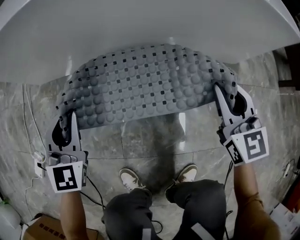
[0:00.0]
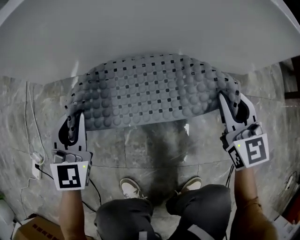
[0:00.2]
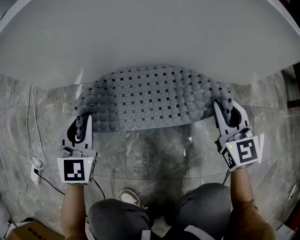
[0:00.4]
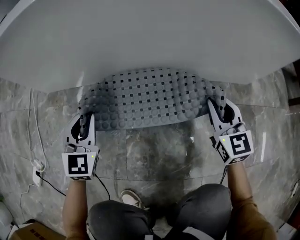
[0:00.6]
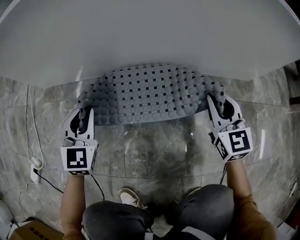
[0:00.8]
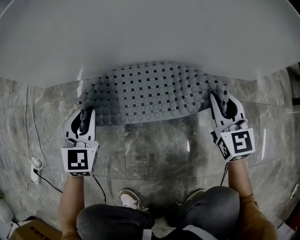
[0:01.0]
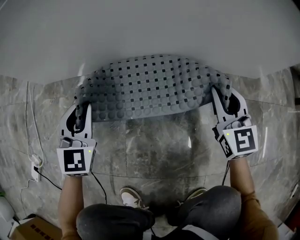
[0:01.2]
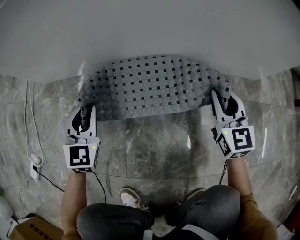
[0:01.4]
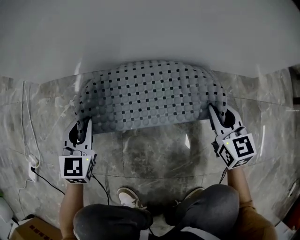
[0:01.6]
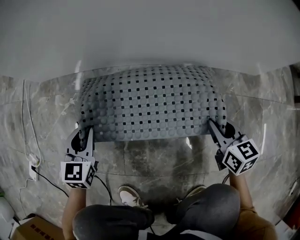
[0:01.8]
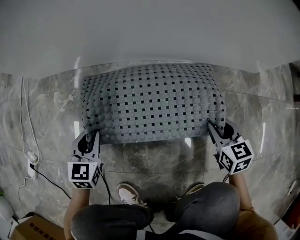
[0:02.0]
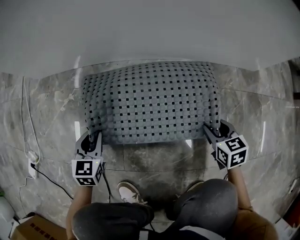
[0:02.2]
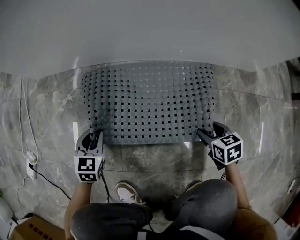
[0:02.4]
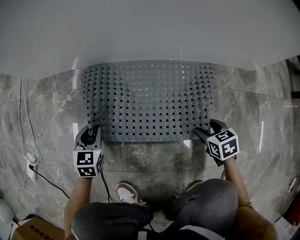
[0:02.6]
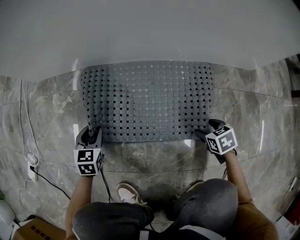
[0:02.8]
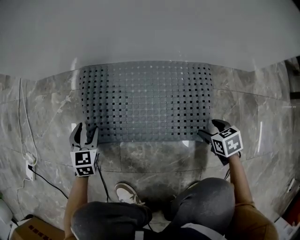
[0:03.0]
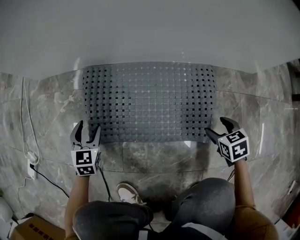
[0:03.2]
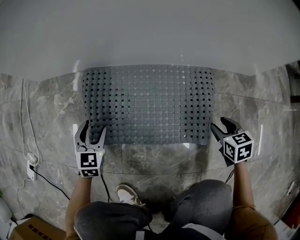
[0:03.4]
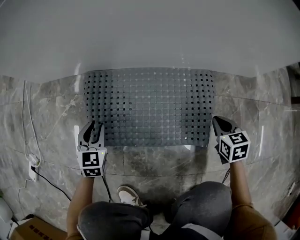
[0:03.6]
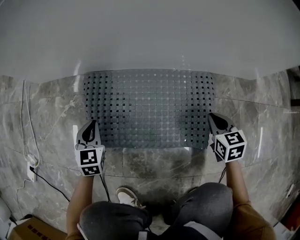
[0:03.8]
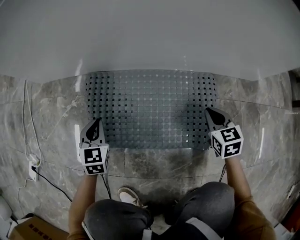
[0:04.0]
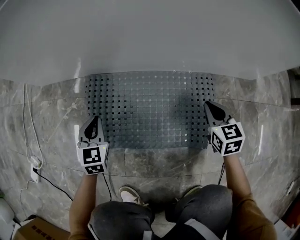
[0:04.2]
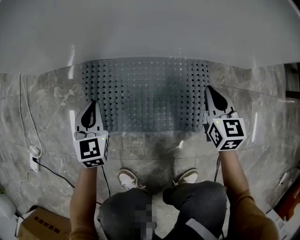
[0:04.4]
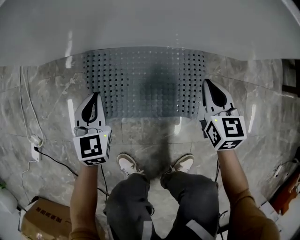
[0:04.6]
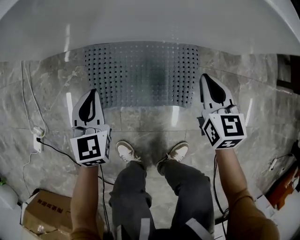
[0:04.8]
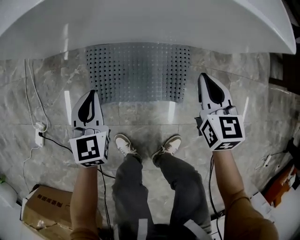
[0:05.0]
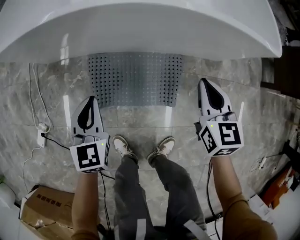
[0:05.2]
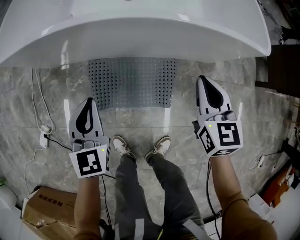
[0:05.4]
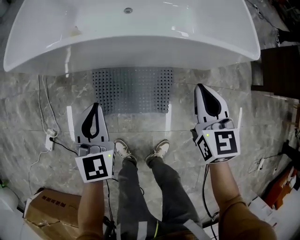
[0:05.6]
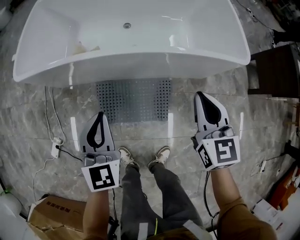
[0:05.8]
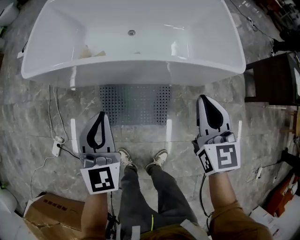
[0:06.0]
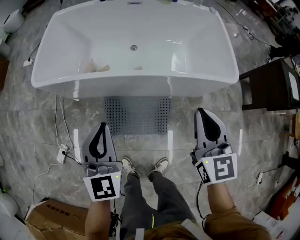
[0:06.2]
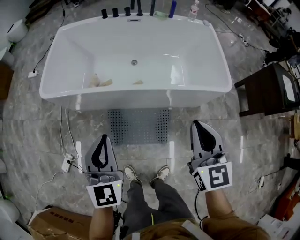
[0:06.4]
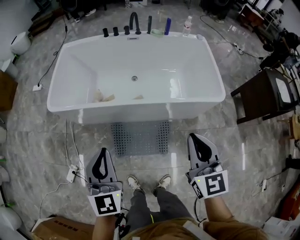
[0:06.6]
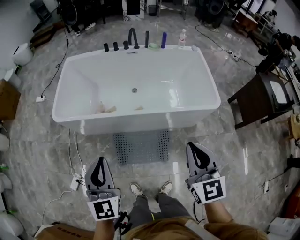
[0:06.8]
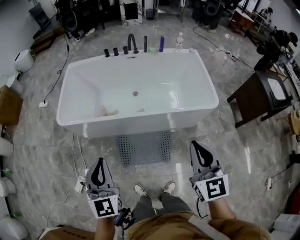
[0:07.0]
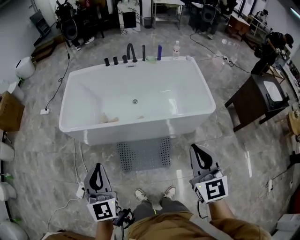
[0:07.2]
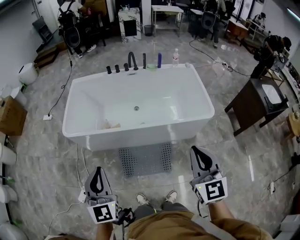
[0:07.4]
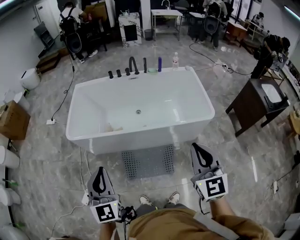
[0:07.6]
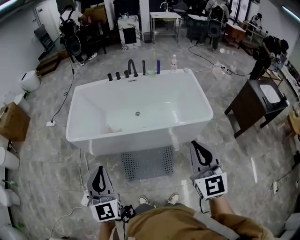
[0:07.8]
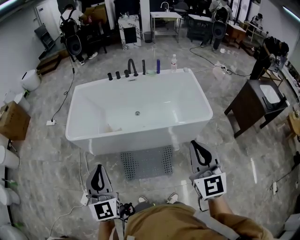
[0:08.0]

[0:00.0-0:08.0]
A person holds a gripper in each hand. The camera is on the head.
0:00.0 to 0:01.6: The right gripper moves roughly 5 cm; the left gripper moves about 5 cm.
0:01.6 to 0:03.2: The left gripper heads downward, covering approximately 10 cm, and opens up, while the right gripper heads downward and backward, covering about 15 cm, tilts its fingers some 40 degrees downward, and opens up.
0:03.2 to 0:04.8: The grippers both shift upward by roughly 25 cm. The right gripper tips its fingers upward by about 30 degrees, and closes up, while the left gripper closes.
0:04.8 to 0:06.4: Both grippers travel together upward, about 60 cm.
0:06.4 to 0:08.0: Both grippers move upward and backward, some 25 cm.

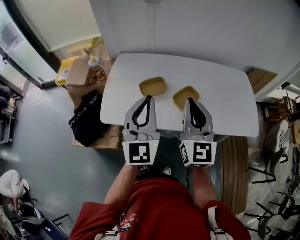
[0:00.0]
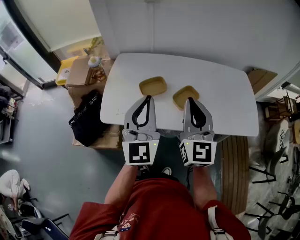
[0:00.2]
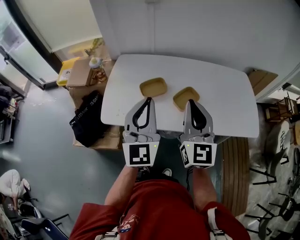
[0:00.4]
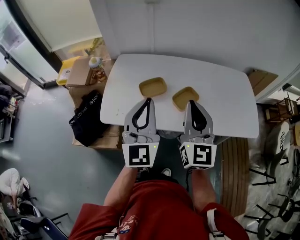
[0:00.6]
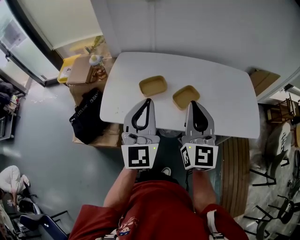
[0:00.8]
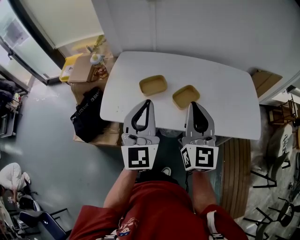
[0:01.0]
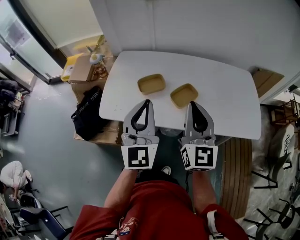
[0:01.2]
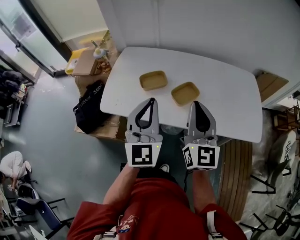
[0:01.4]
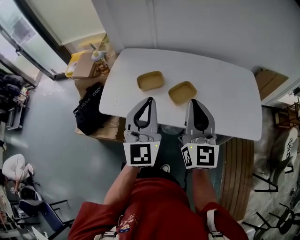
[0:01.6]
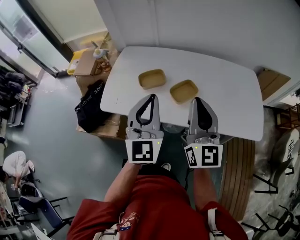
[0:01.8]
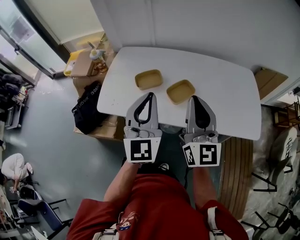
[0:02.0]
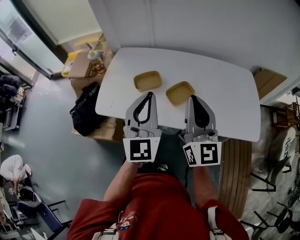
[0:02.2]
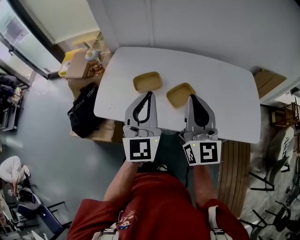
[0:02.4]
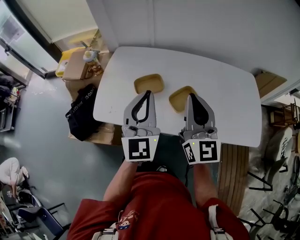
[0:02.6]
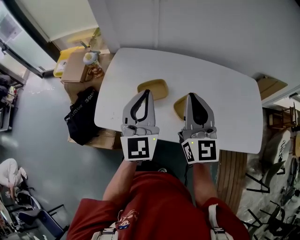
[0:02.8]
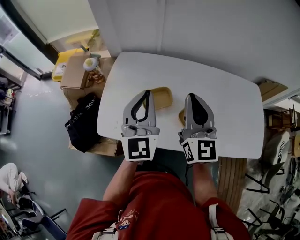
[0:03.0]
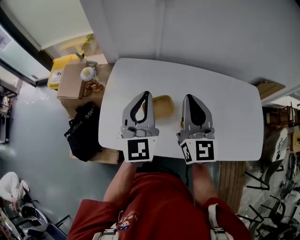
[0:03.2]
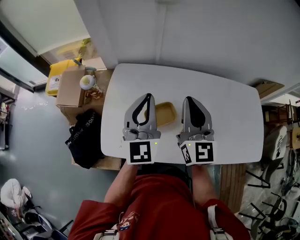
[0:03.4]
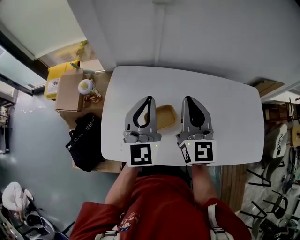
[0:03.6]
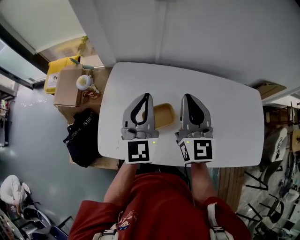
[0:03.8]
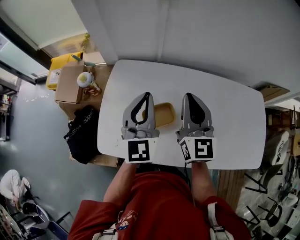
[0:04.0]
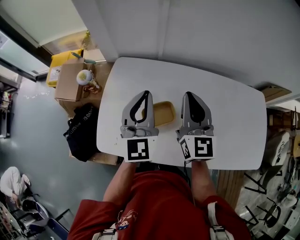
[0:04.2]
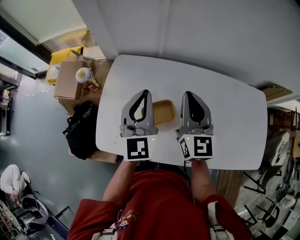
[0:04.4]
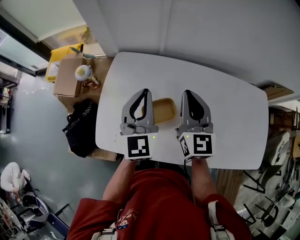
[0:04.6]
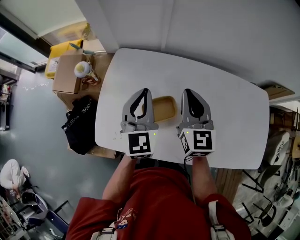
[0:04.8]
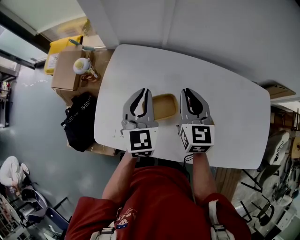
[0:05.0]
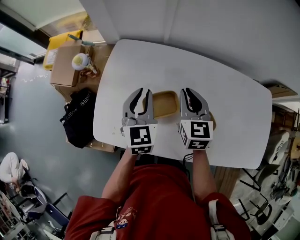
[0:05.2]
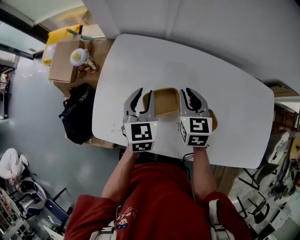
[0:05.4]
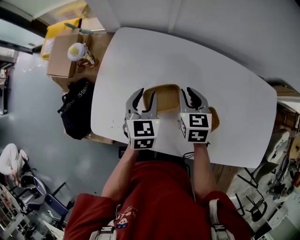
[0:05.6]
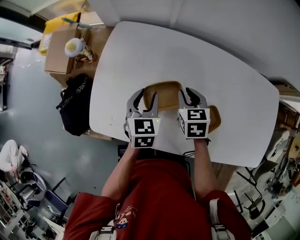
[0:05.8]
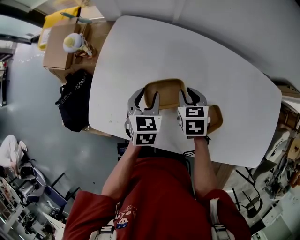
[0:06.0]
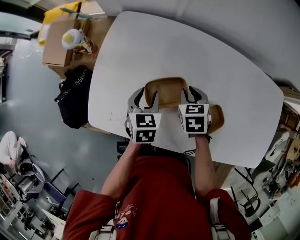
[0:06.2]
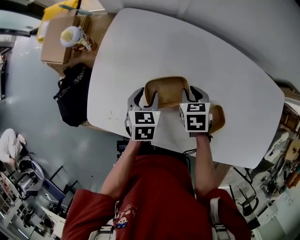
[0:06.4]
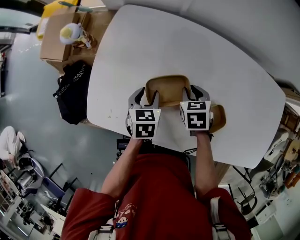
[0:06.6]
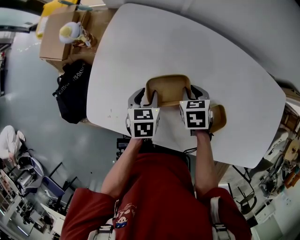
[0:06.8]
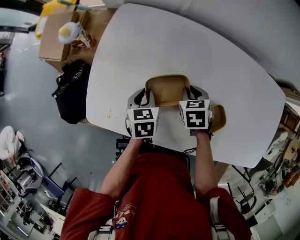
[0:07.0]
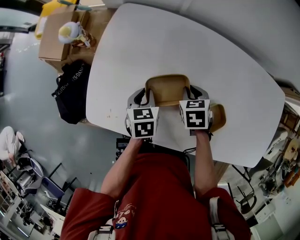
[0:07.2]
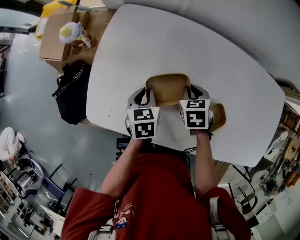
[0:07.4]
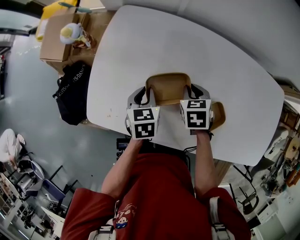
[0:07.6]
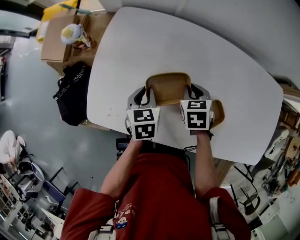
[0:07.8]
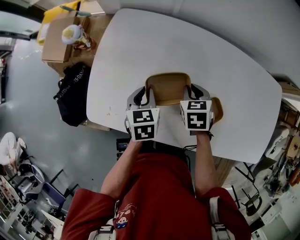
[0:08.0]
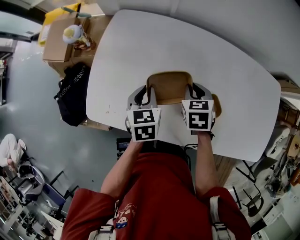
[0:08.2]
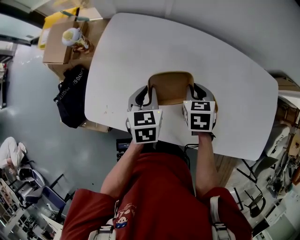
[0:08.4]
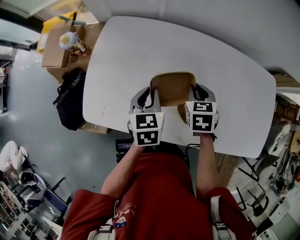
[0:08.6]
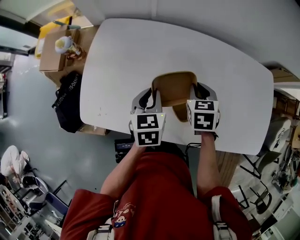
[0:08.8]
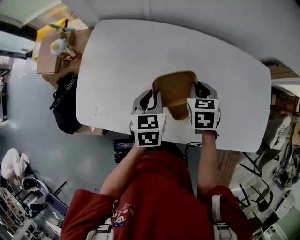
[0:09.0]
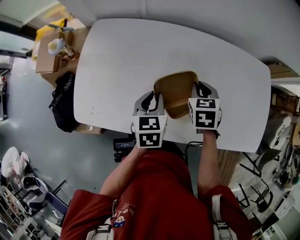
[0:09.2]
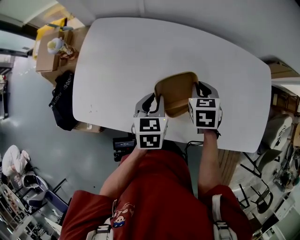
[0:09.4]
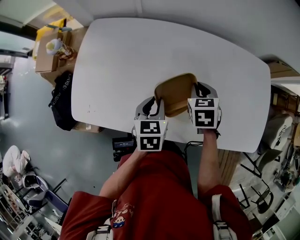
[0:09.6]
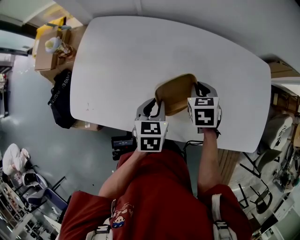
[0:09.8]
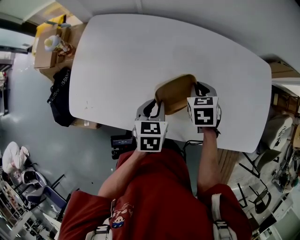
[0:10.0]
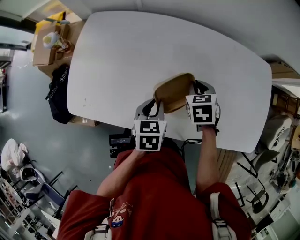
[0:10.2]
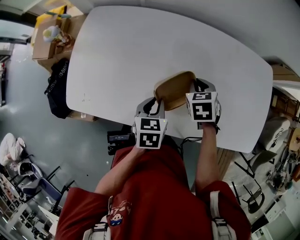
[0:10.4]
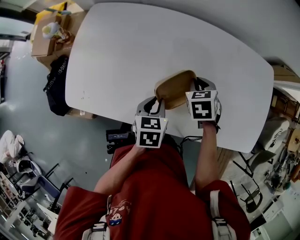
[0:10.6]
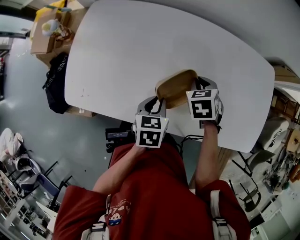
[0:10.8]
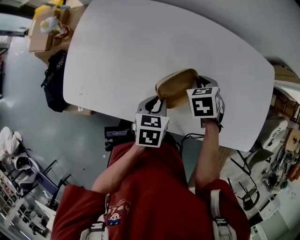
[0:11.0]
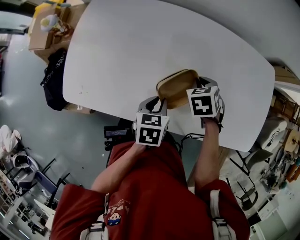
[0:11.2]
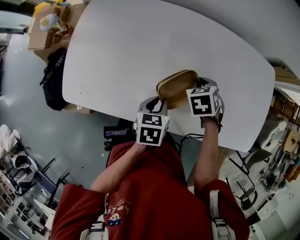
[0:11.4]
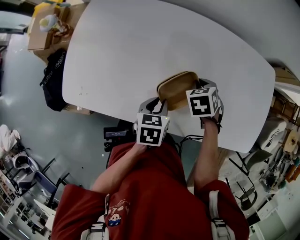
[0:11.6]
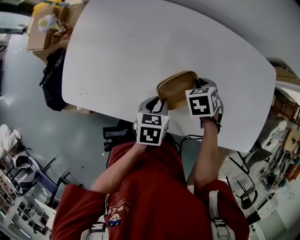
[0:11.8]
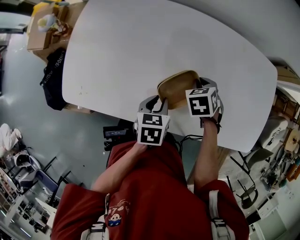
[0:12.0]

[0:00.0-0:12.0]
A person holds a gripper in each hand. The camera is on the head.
0:00.0 to 0:01.6: The grippers both shift to the right by some 10 cm.
0:01.6 to 0:03.0: Both grippers move forward and to the left, some 20 cm.
0:03.0 to 0:04.4: The two grippers go approximately 15 cm forward.
0:04.4 to 0:06.0: The two grippers go about 25 cm downward. The right gripper angles its fingers downward, by some 50 degrees, and opens its fingers. The left gripper angles its fingers downward, by some 40 degrees, and opens up.
0:06.0 to 0:07.6: The left gripper closes up.
0:07.6 to 0:09.0: Both grippers move to the right and upward, approximately 15 cm.
0:09.0 to 0:10.4: The left gripper travels to the right, backward and downward by some 10 cm. Meanwhile the right gripper is displaced to the right by some 5 cm.
0:10.4 to 0:12.0: The grippers move only a little.

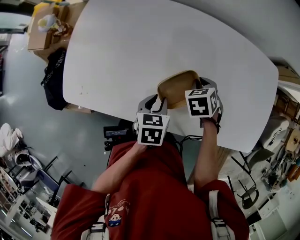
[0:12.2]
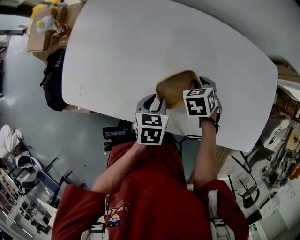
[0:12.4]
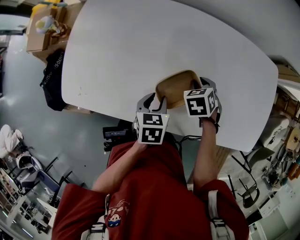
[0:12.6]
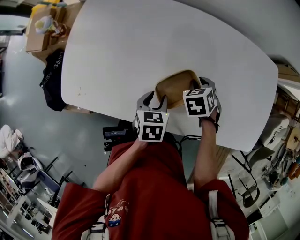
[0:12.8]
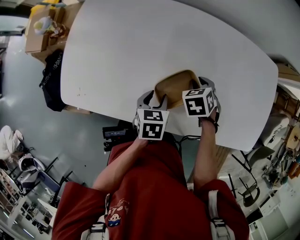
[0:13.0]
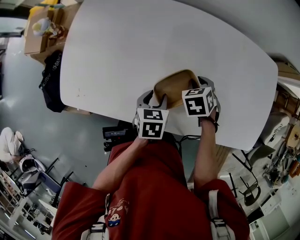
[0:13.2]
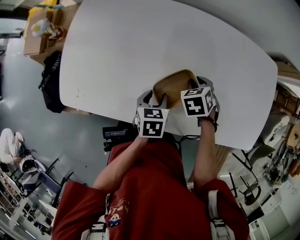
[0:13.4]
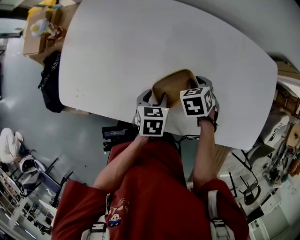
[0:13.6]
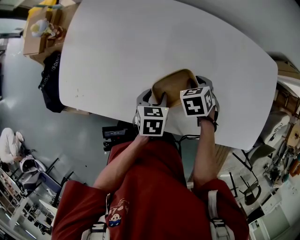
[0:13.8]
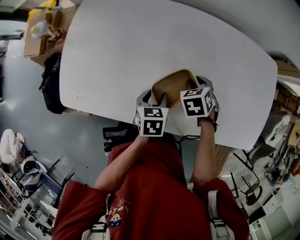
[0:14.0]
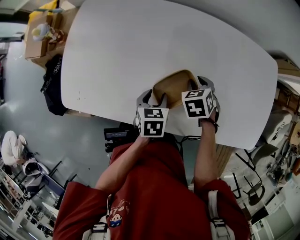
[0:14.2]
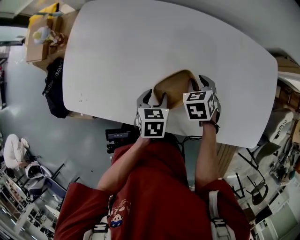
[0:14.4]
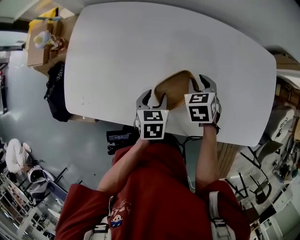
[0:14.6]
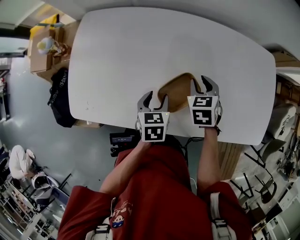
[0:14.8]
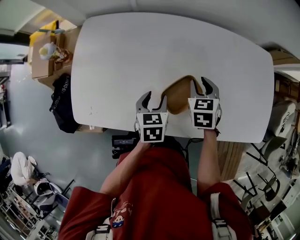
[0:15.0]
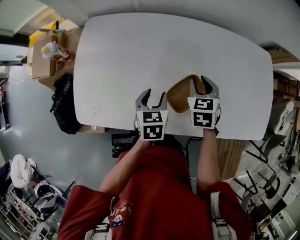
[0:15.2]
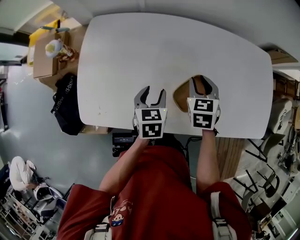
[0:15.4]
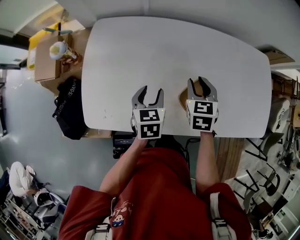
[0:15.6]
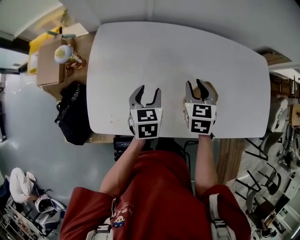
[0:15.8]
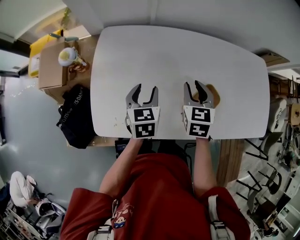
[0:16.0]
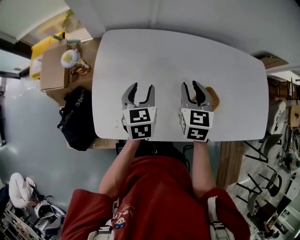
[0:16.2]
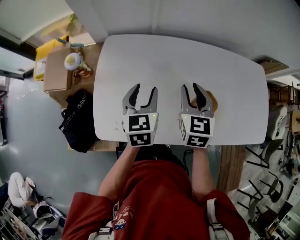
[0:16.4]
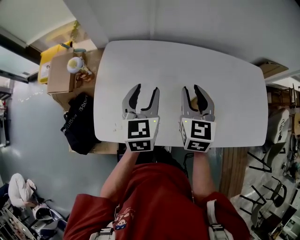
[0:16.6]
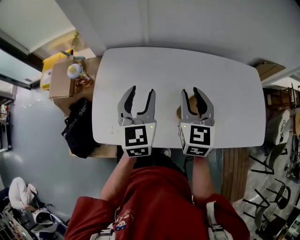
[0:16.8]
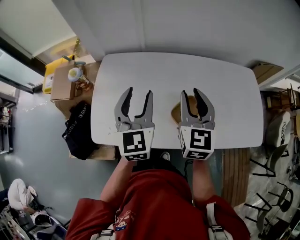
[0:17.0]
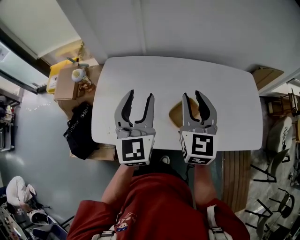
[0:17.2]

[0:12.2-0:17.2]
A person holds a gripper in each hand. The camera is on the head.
0:12.2 to 0:13.8: The left gripper opens its fingers.
0:13.8 to 0:15.6: The right gripper is displaced upward and to the left by approximately 15 cm, and swivels some 30 degrees. The left gripper heads to the left and upward, covering about 15 cm.
0:15.6 to 0:17.2: Both grippers travel together upward, roughly 25 cm. The right gripper angles its fingers upward, by roughly 30 degrees. Meanwhile the left gripper angles its fingers upward, by some 40 degrees.
